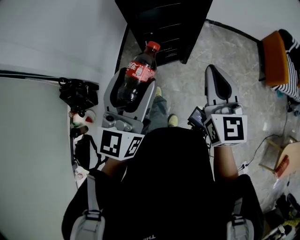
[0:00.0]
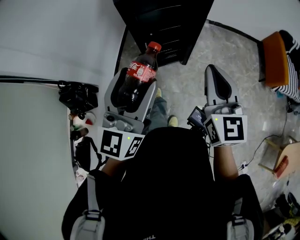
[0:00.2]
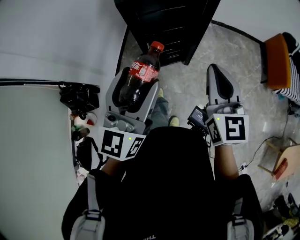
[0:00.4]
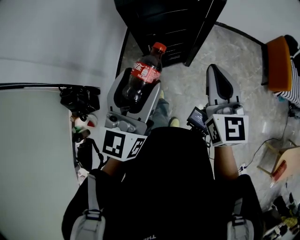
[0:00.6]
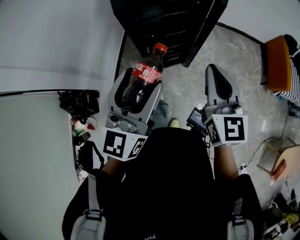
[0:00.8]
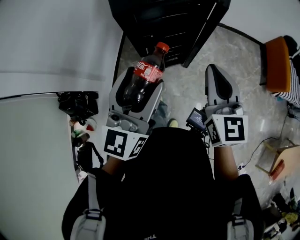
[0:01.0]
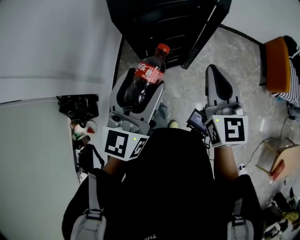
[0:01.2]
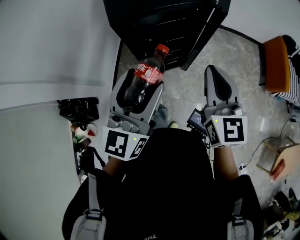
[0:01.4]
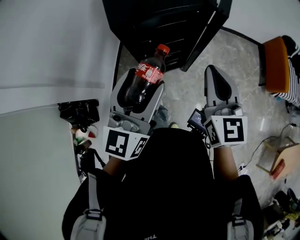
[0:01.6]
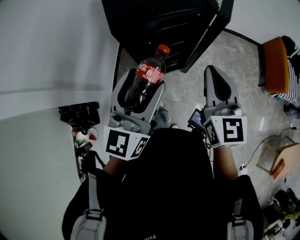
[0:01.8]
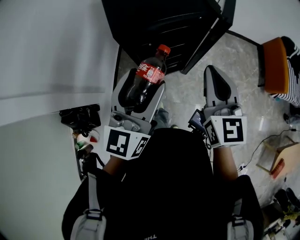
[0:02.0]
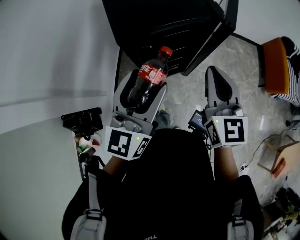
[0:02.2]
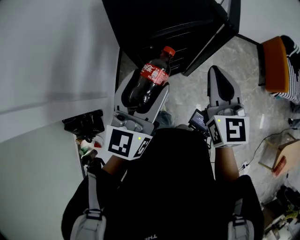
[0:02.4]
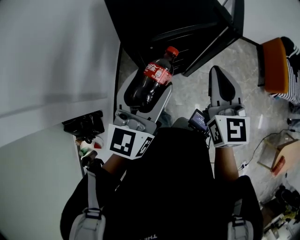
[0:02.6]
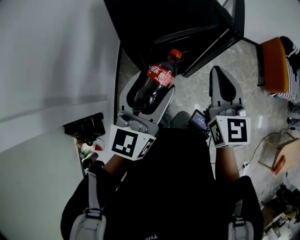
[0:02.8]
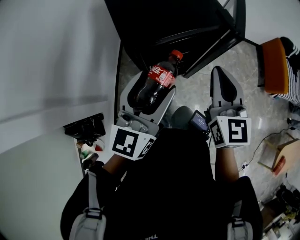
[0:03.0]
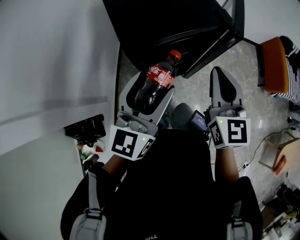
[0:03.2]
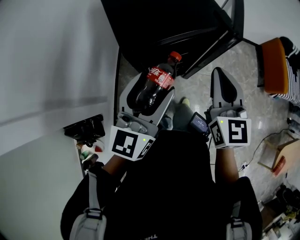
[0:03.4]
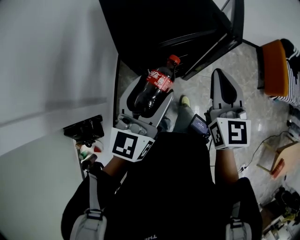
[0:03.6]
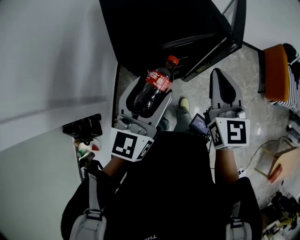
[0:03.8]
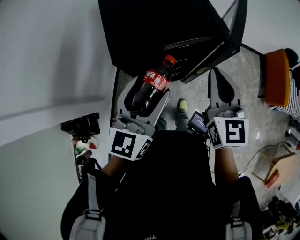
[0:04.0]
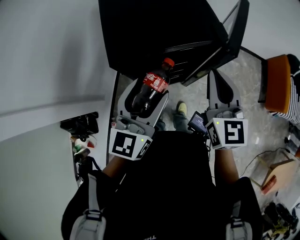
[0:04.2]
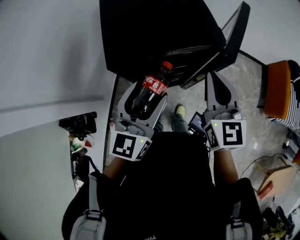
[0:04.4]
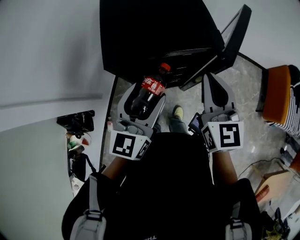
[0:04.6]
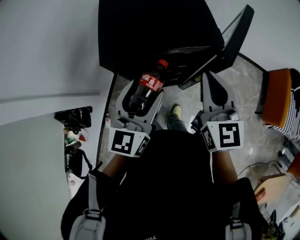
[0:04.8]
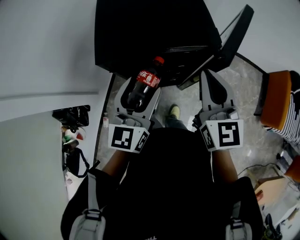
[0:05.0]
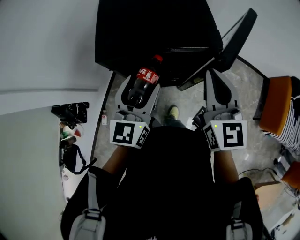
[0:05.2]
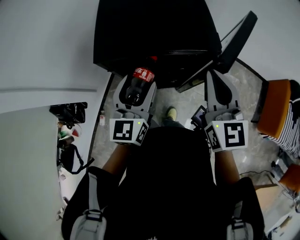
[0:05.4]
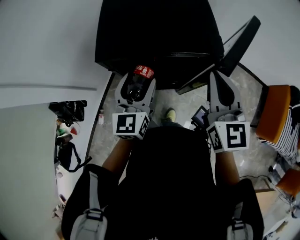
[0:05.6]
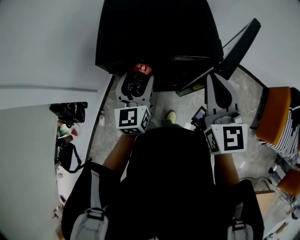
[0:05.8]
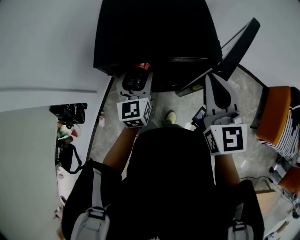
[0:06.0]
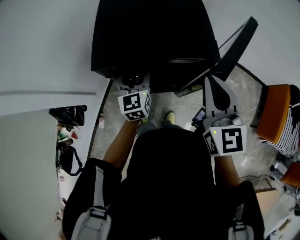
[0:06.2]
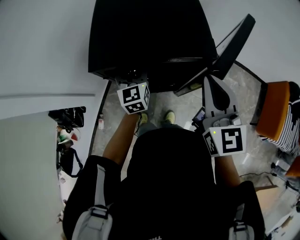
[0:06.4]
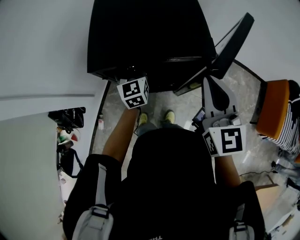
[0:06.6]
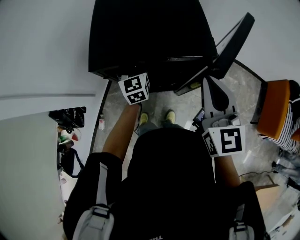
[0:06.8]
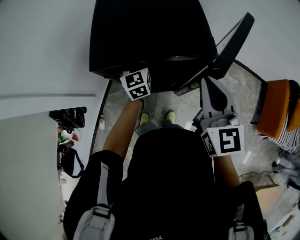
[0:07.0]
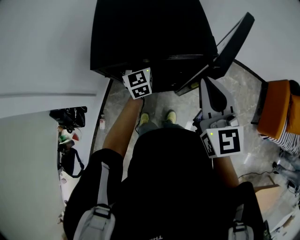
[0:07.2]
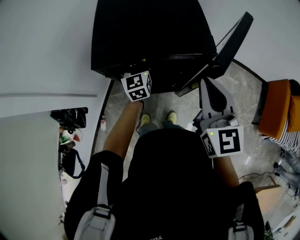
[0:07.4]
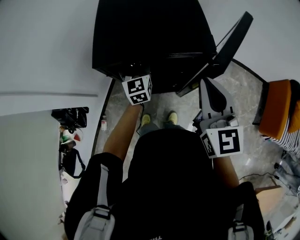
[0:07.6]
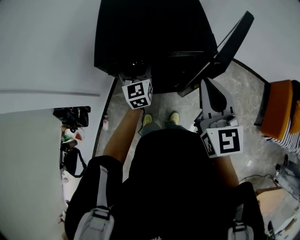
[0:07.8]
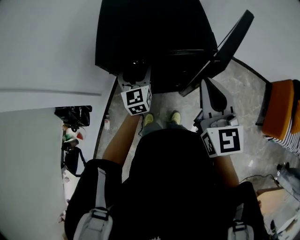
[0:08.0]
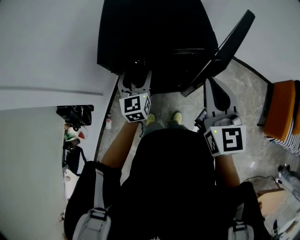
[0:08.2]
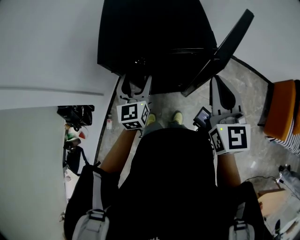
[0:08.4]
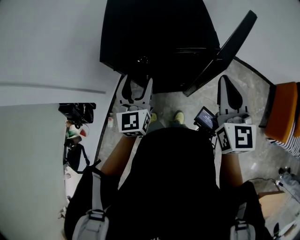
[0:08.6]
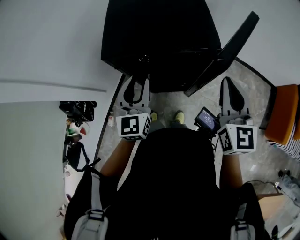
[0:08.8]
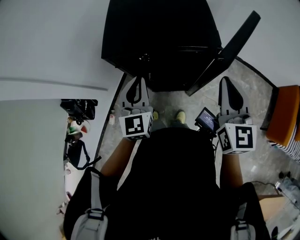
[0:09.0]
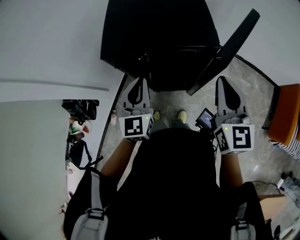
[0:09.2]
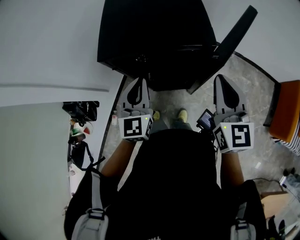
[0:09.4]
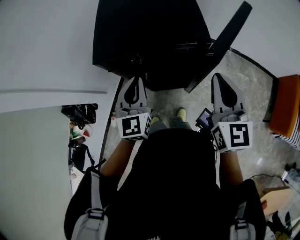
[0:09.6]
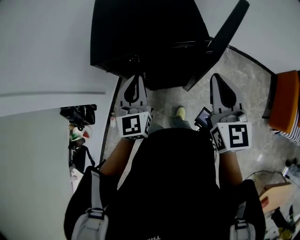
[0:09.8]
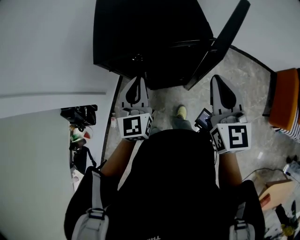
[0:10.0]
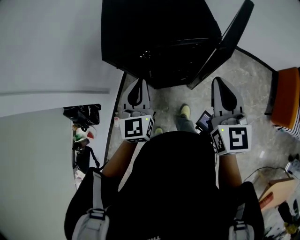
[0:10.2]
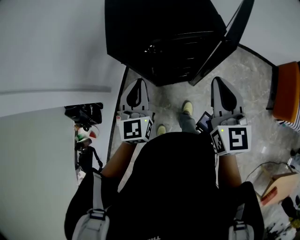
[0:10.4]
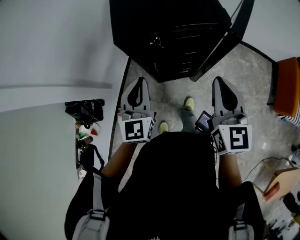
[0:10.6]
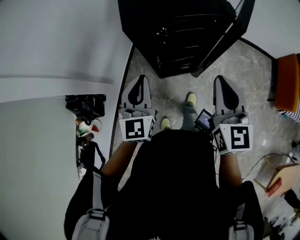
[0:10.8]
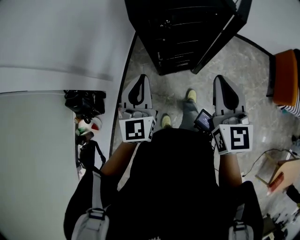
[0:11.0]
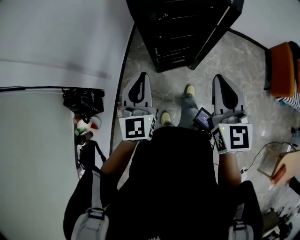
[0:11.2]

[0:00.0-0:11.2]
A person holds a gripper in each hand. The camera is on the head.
0:00.0 to 0:01.6: The two grippers go roughly 15 cm forward.
0:01.6 to 0:03.2: The grippers both shift forward by roughly 10 cm.
0:03.2 to 0:04.8: The right gripper travels forward and to the right by approximately 10 cm, while the left gripper moves to the right, approximately 5 cm.
0:04.8 to 0:06.4: The left gripper moves forward and downward, some 20 cm, and rotates approximately 30 degrees.
0:06.4 to 0:08.0: There are only small adjustments of the grippers.
0:08.0 to 0:09.6: The right gripper heads to the right, covering about 5 cm; the left gripper goes about 10 cm backward and upward, and closes up.
0:09.6 to 0:11.2: Both grippers move backward and to the left, some 25 cm.

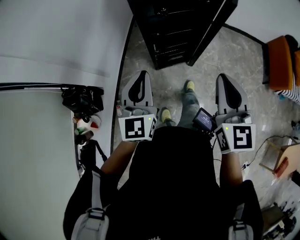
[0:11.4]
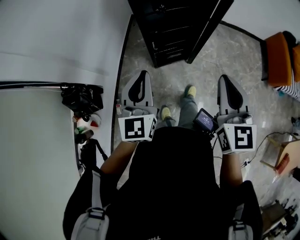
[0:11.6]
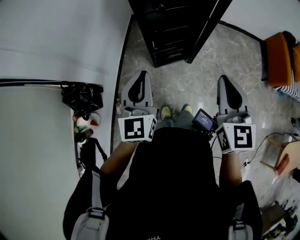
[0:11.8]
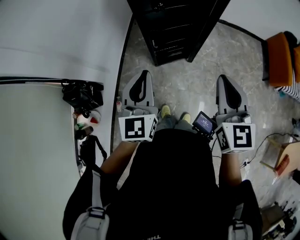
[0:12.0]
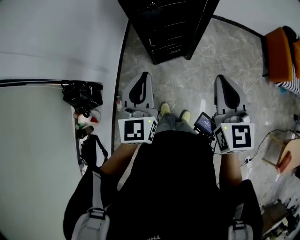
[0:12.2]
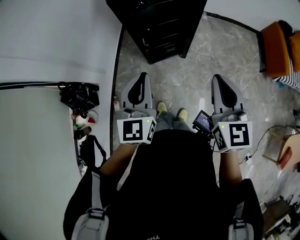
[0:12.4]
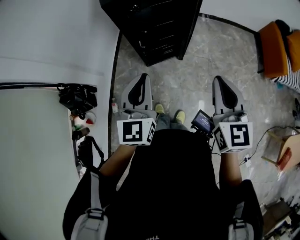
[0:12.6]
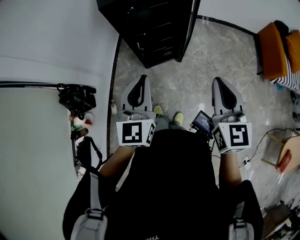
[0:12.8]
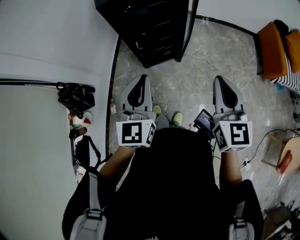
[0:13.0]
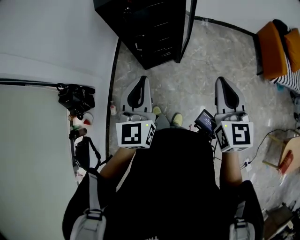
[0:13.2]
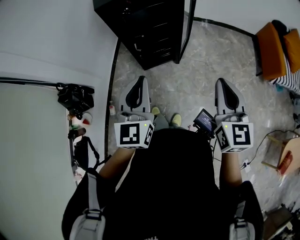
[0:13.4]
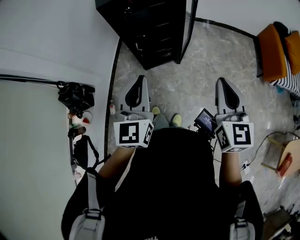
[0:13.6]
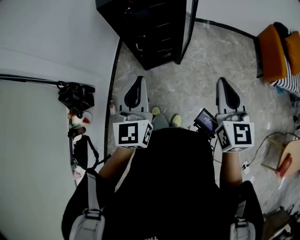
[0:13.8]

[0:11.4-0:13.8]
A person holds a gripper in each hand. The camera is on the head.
0:11.4 to 0:12.6: Both grippers move to the right and backward, about 15 cm.
0:12.6 to 0:13.8: The right gripper goes approximately 5 cm to the right; the left gripper shifts by roughly 5 cm.

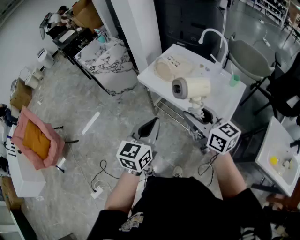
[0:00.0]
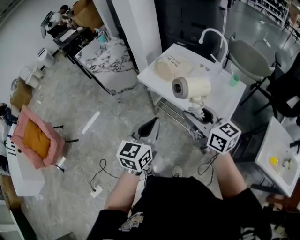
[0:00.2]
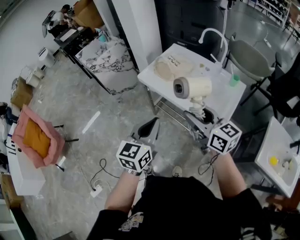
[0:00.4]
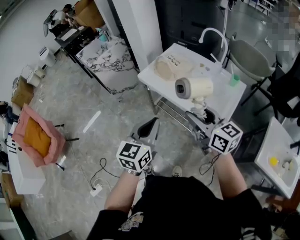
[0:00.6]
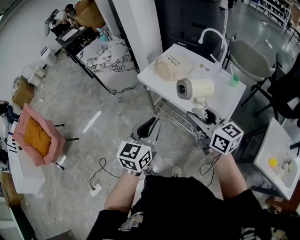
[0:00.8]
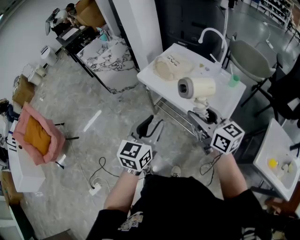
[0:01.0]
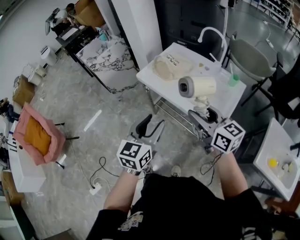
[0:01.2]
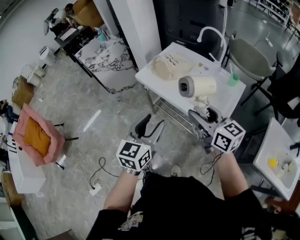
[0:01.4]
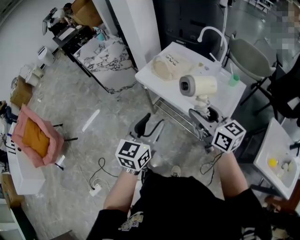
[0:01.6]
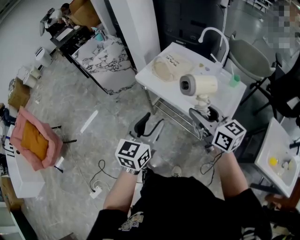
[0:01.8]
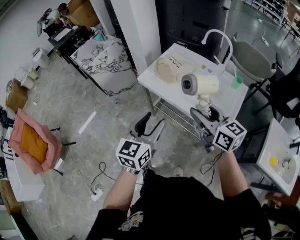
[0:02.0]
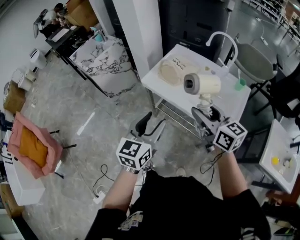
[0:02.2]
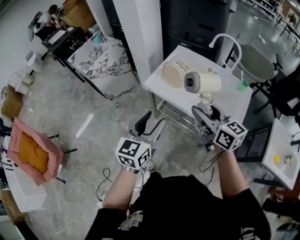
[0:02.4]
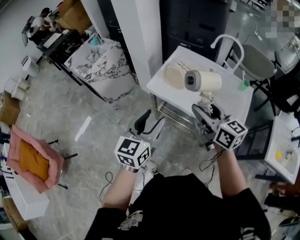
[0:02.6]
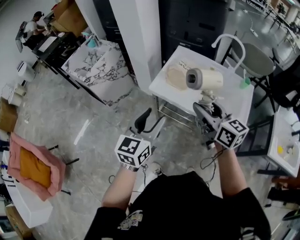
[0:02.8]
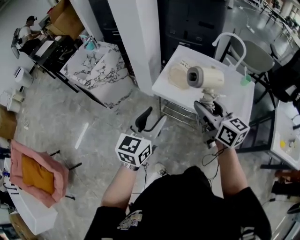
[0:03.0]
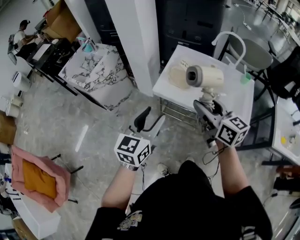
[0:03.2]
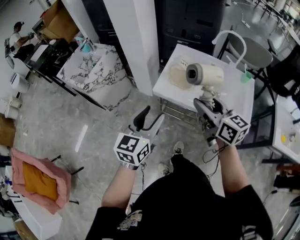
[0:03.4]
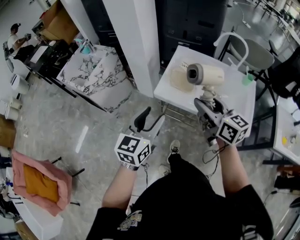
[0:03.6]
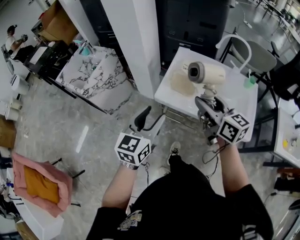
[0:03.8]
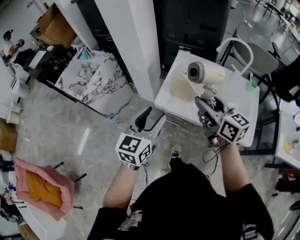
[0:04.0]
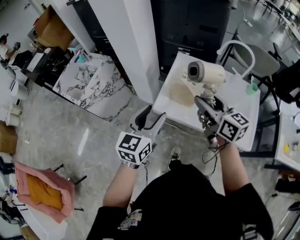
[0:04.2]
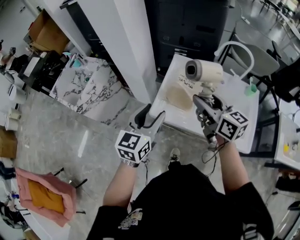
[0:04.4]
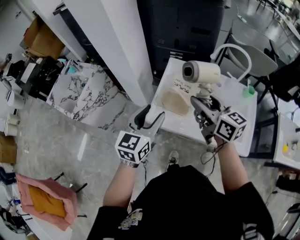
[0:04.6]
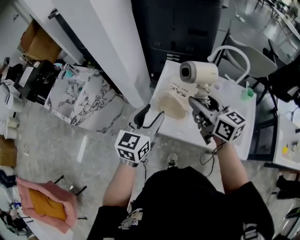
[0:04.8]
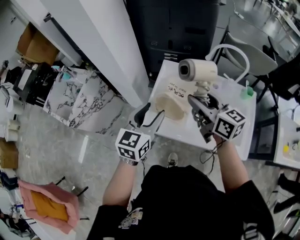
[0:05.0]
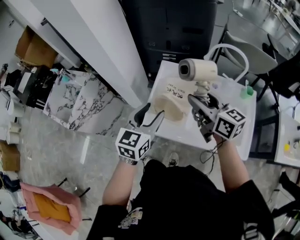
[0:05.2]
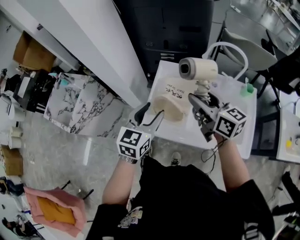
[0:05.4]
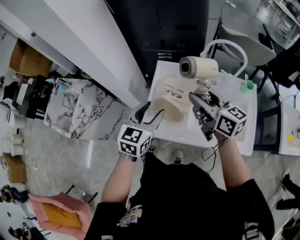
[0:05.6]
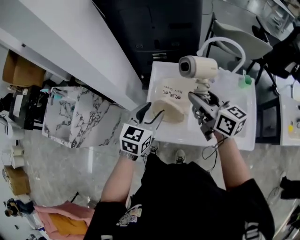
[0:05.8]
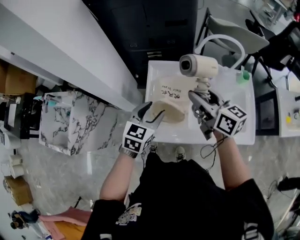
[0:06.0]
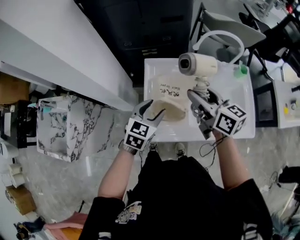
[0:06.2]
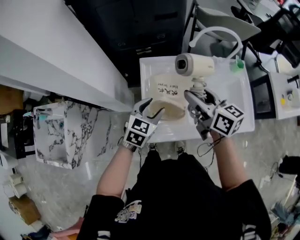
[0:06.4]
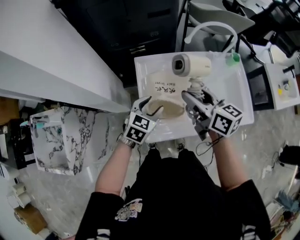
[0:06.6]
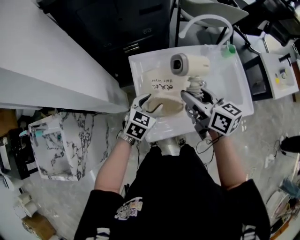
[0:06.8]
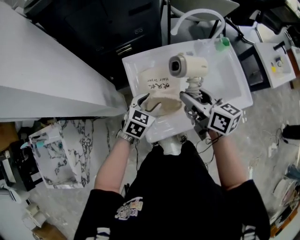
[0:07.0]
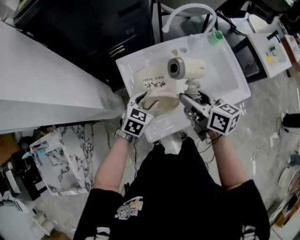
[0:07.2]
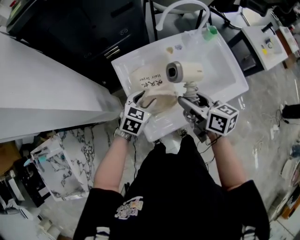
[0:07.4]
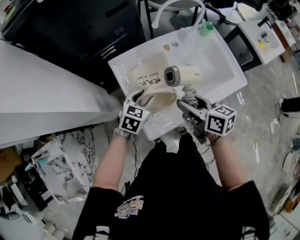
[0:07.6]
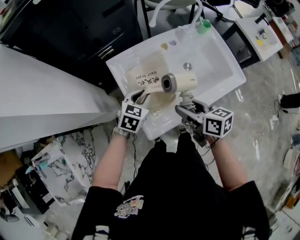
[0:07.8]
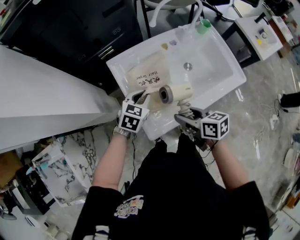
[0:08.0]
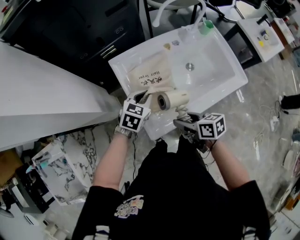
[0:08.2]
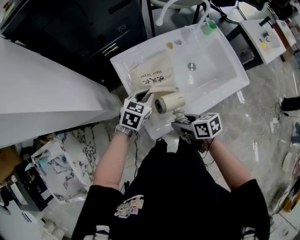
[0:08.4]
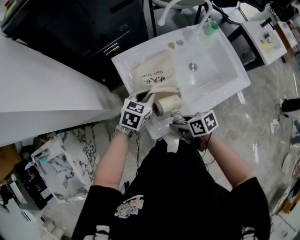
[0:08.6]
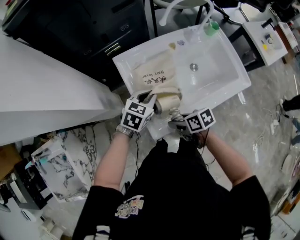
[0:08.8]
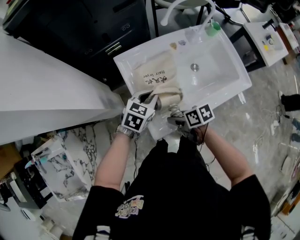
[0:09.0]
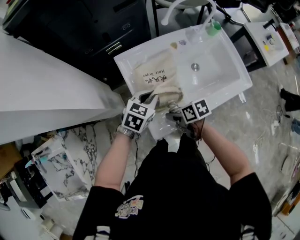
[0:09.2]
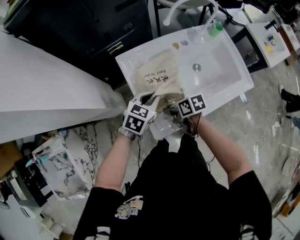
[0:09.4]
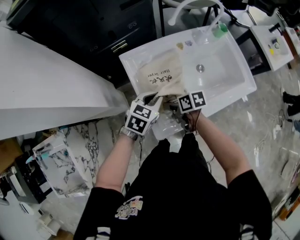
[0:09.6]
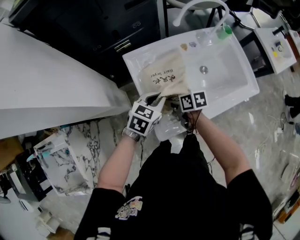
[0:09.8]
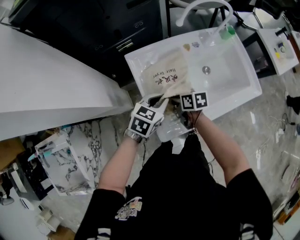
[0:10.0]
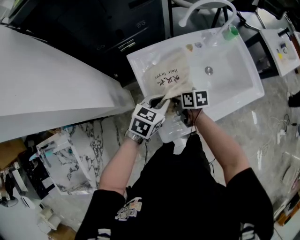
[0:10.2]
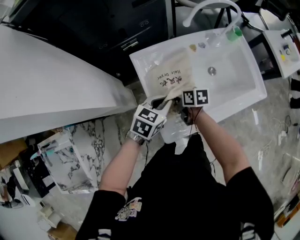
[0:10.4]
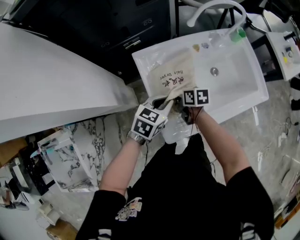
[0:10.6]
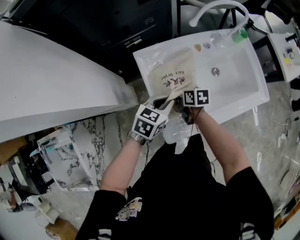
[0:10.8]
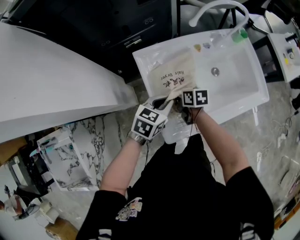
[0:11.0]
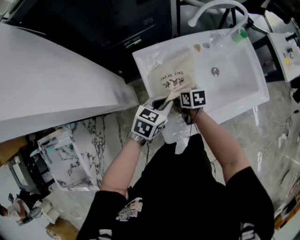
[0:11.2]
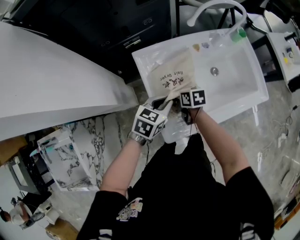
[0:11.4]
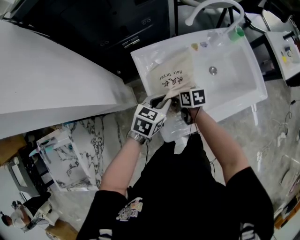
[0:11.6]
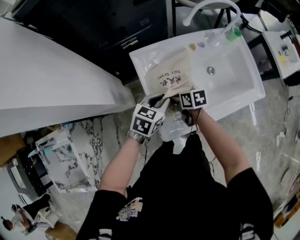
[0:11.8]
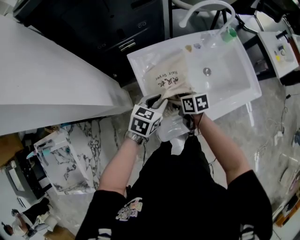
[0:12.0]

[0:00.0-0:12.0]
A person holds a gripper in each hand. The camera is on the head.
0:00.0 to 0:01.6: The left gripper opens up.
0:01.6 to 0:03.0: The two grippers go about 25 cm to the left and forward.
0:03.0 to 0:04.4: The grippers both shift forward by some 20 cm.
0:04.4 to 0:06.0: The right gripper moves forward and to the right, about 15 cm, while the left gripper goes approximately 20 cm forward, downward and to the right, and turns by approximately 30 degrees.
0:06.0 to 0:07.6: The grippers both shift downward by about 10 cm. The left gripper changes its angle by about 30 degrees; the right gripper swivels approximately 30 degrees.
0:07.6 to 0:09.0: The left gripper closes its fingers; the right gripper is displaced downward and to the left by about 15 cm, and changes its angle by approximately 40 degrees.
0:09.0 to 0:10.4: The right gripper shifts approximately 15 cm forward.
0:10.4 to 0:12.0: The right gripper opens its fingers.
